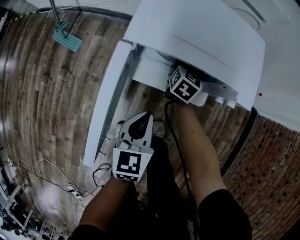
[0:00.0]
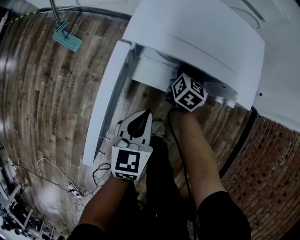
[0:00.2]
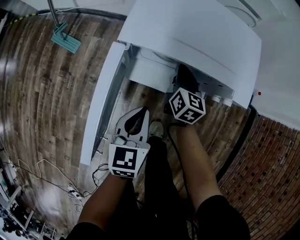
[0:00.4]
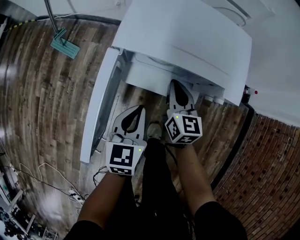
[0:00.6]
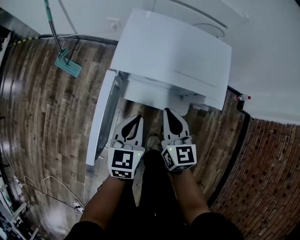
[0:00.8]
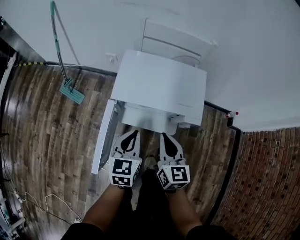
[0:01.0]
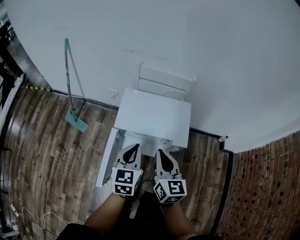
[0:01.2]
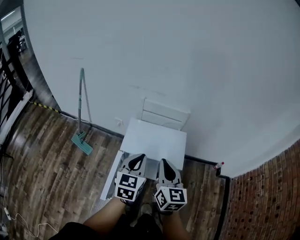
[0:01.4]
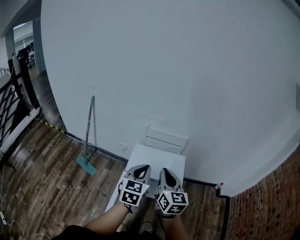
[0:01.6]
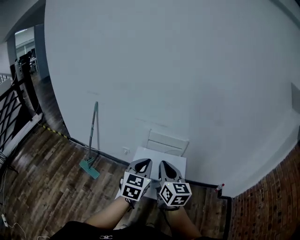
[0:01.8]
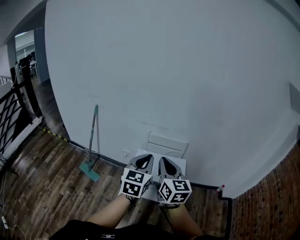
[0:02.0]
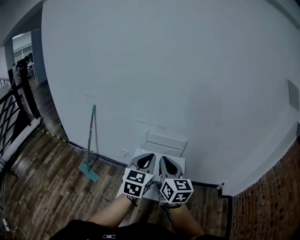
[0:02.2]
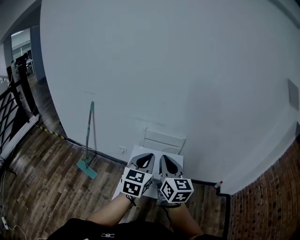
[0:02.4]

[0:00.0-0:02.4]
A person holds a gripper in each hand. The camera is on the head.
0:00.0 to 0:01.2: The left gripper heads upward, covering approximately 25 cm. The right gripper goes roughly 40 cm upward and backward, changes its angle by approximately 30 degrees, and closes its fingers.
0:01.2 to 0:02.4: The grippers both shift upward by about 25 cm.

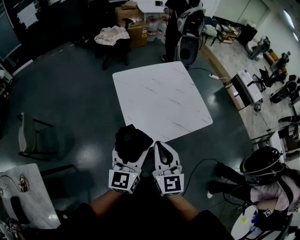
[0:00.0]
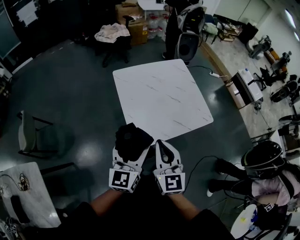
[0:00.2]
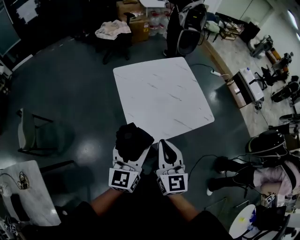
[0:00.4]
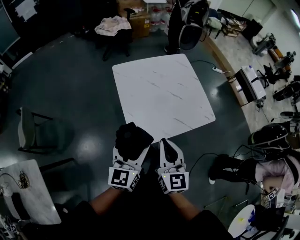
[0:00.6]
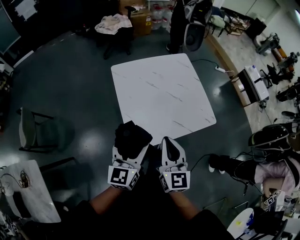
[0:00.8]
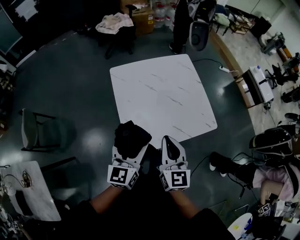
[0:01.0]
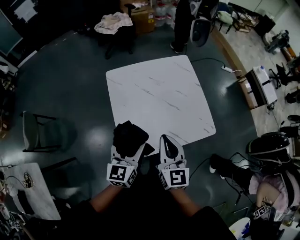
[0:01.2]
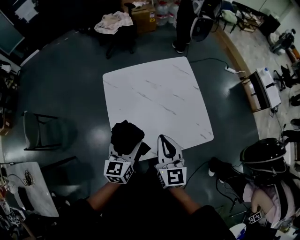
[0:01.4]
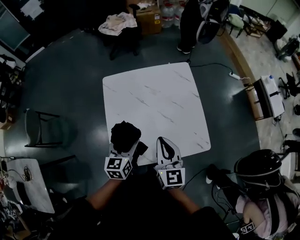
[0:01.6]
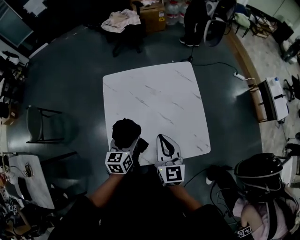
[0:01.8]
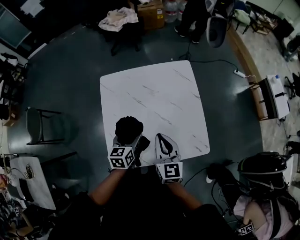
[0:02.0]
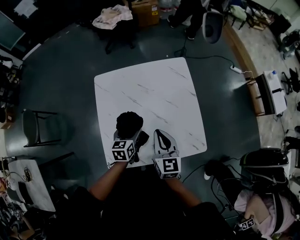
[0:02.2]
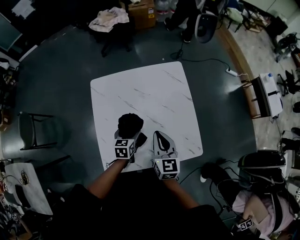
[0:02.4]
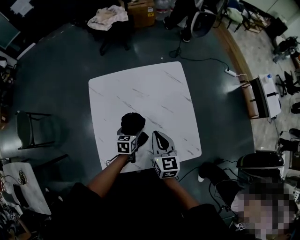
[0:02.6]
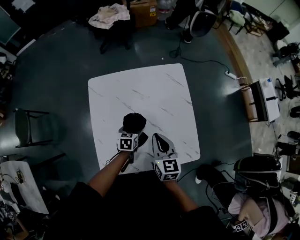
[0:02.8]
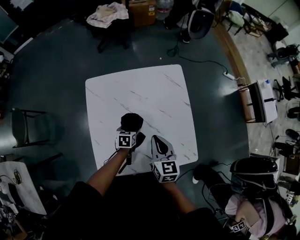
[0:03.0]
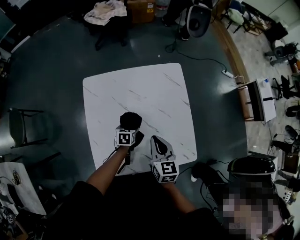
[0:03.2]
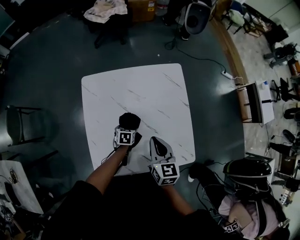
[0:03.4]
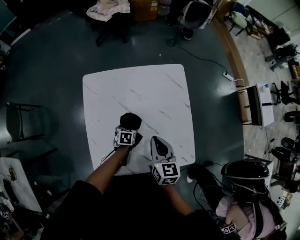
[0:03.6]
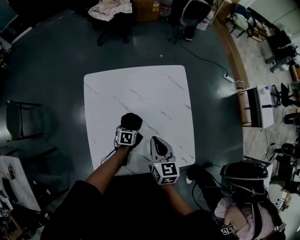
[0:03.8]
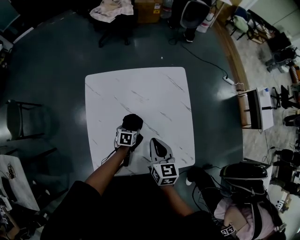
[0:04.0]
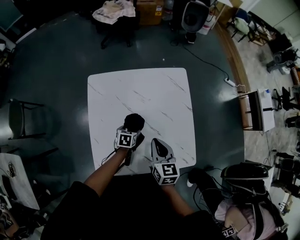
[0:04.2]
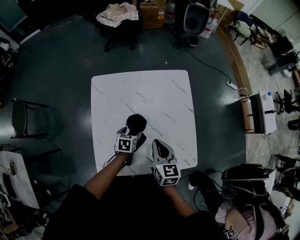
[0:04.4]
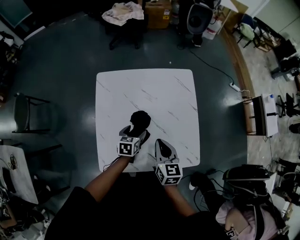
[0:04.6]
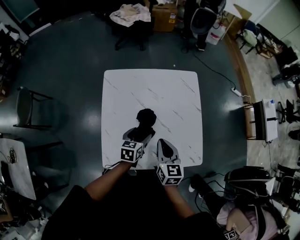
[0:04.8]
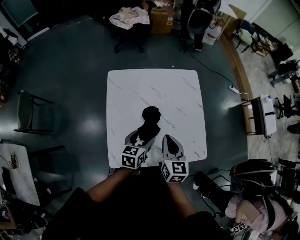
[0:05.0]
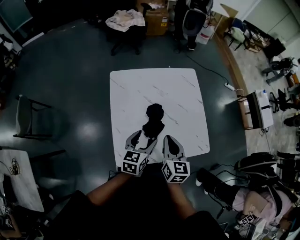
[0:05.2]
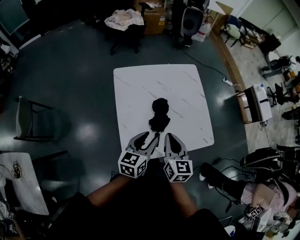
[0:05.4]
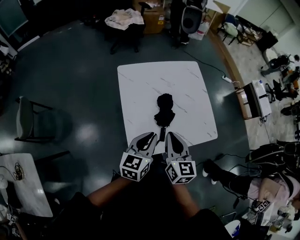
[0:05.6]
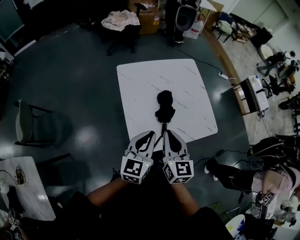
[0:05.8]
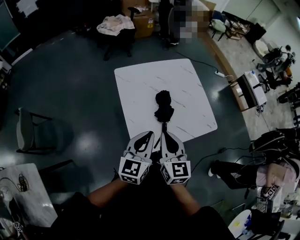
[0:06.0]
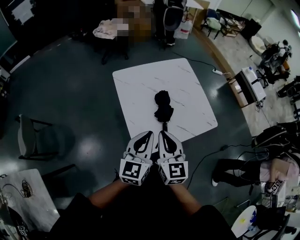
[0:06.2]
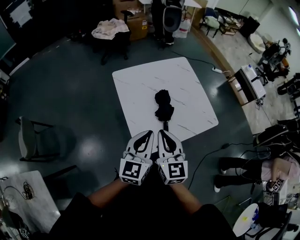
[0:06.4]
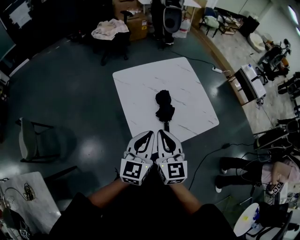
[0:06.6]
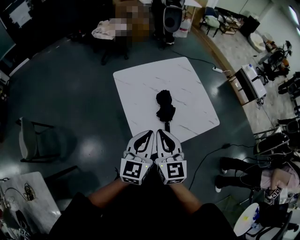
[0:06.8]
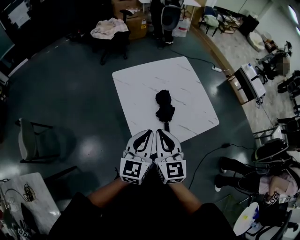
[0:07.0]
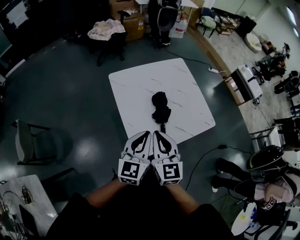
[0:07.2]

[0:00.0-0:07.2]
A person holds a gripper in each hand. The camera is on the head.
0:00.0 to 0:01.4: The left gripper is displaced forward, to the right and downward by some 25 cm, while the right gripper moves forward and to the right, about 25 cm.
0:01.4 to 0:02.8: The left gripper is displaced downward and forward by roughly 30 cm, and tips its fingers downward by approximately 30 degrees, while the right gripper travels forward, downward and to the right by roughly 20 cm.
0:02.8 to 0:04.4: The left gripper moves about 10 cm downward and comes back.
0:04.4 to 0:05.8: The left gripper shifts roughly 40 cm upward, backward and to the left, tips its fingers upward by some 40 degrees, and closes; the right gripper heads backward, to the left and upward, covering about 30 cm, and swivels some 20 degrees.
0:05.8 to 0:07.2: The right gripper travels to the left by roughly 5 cm.

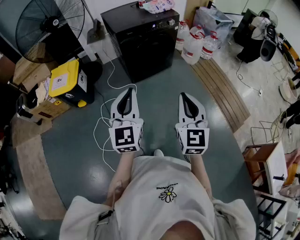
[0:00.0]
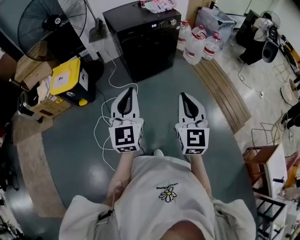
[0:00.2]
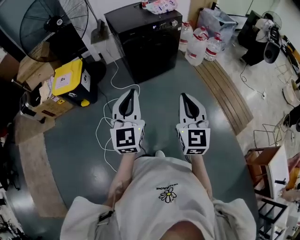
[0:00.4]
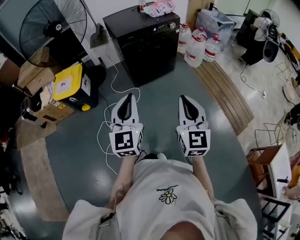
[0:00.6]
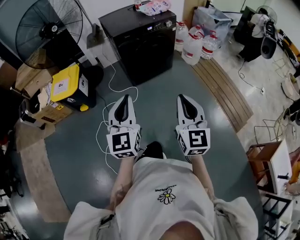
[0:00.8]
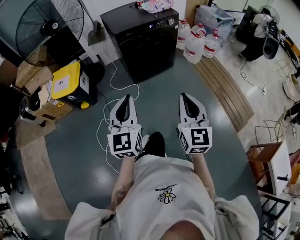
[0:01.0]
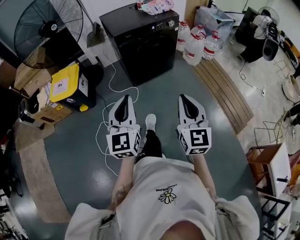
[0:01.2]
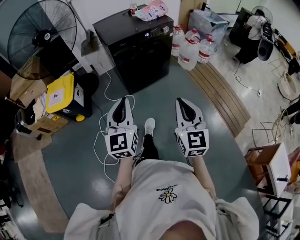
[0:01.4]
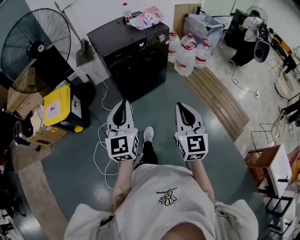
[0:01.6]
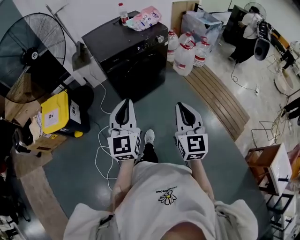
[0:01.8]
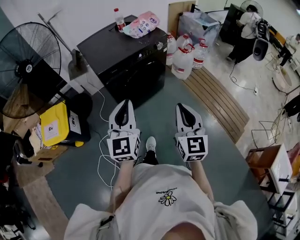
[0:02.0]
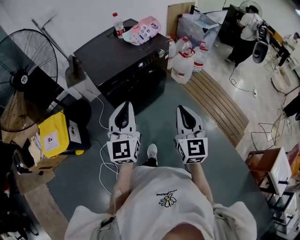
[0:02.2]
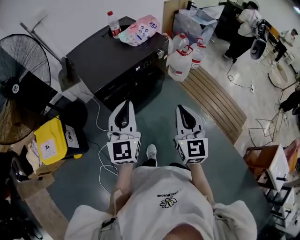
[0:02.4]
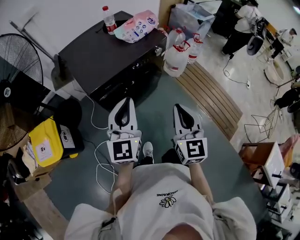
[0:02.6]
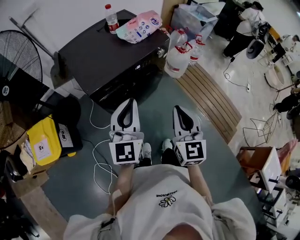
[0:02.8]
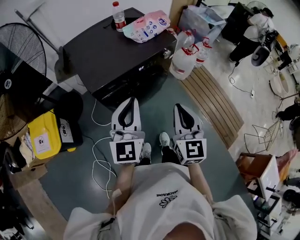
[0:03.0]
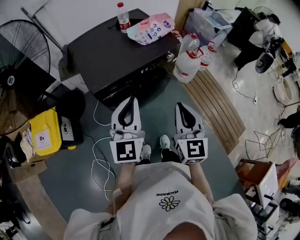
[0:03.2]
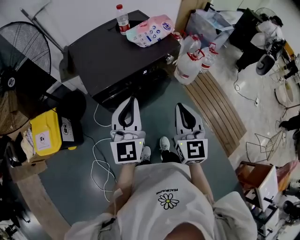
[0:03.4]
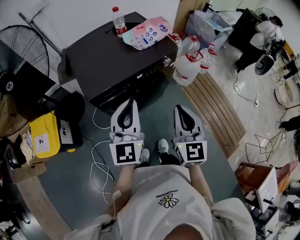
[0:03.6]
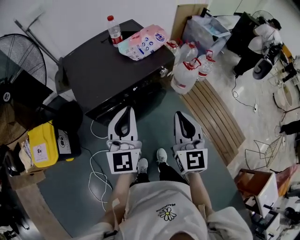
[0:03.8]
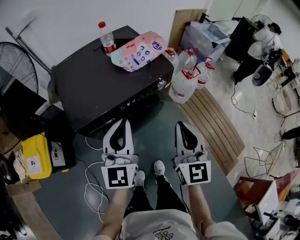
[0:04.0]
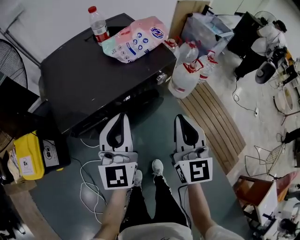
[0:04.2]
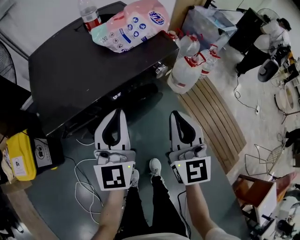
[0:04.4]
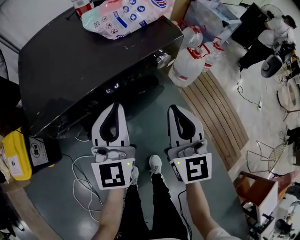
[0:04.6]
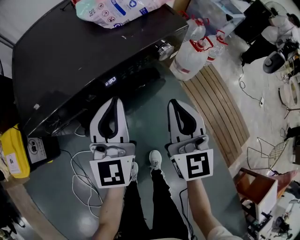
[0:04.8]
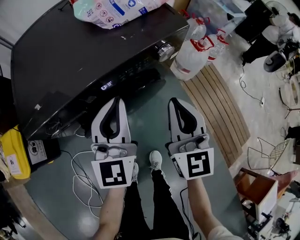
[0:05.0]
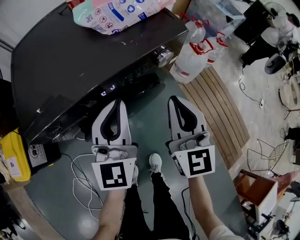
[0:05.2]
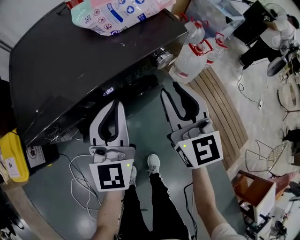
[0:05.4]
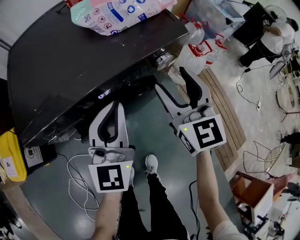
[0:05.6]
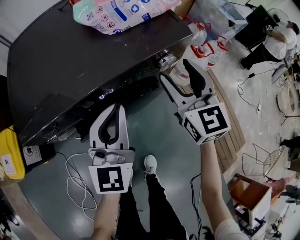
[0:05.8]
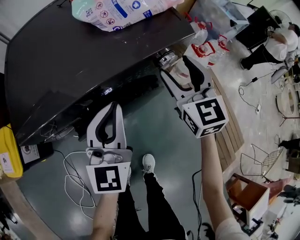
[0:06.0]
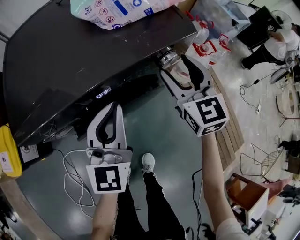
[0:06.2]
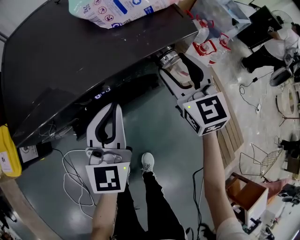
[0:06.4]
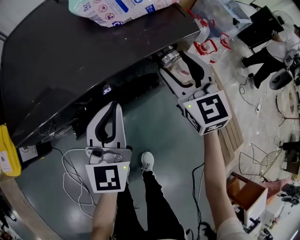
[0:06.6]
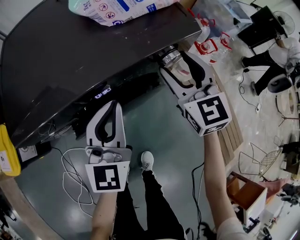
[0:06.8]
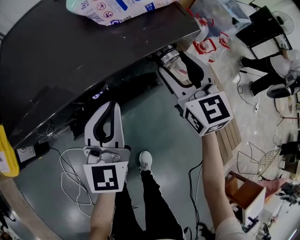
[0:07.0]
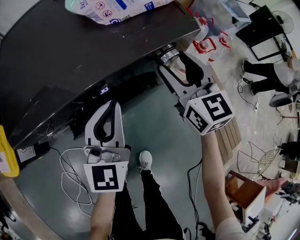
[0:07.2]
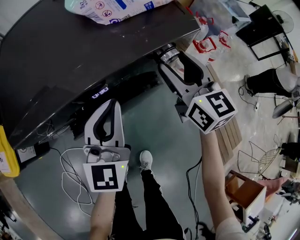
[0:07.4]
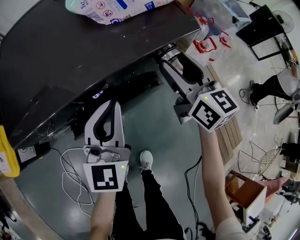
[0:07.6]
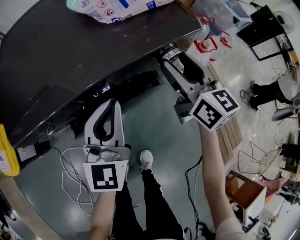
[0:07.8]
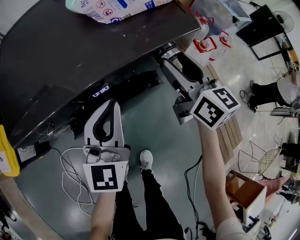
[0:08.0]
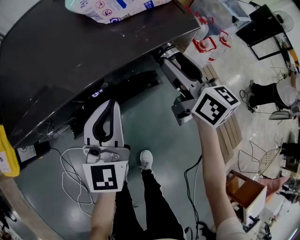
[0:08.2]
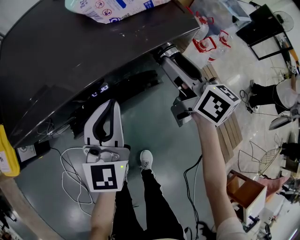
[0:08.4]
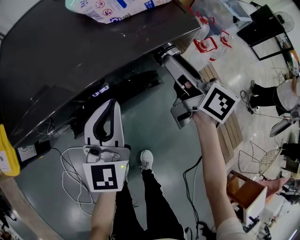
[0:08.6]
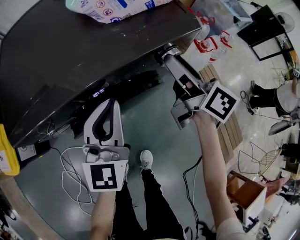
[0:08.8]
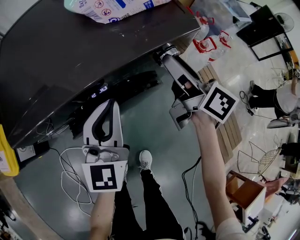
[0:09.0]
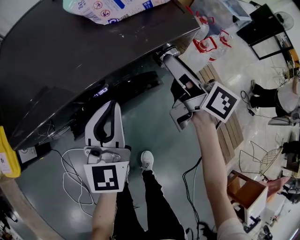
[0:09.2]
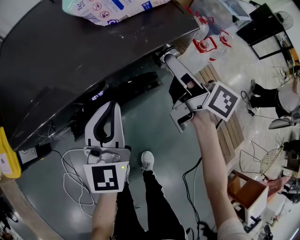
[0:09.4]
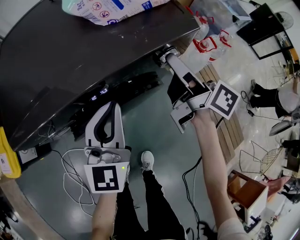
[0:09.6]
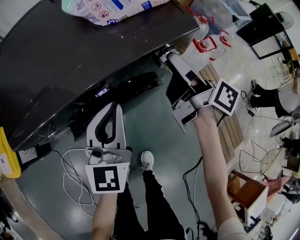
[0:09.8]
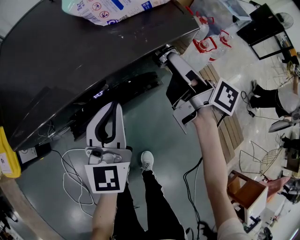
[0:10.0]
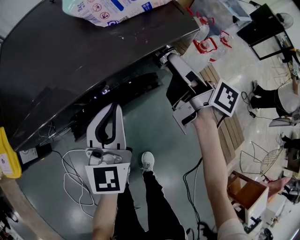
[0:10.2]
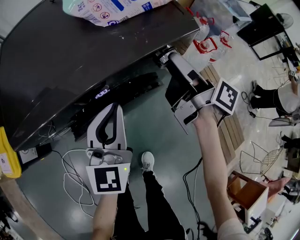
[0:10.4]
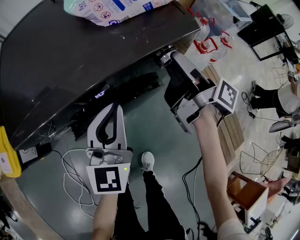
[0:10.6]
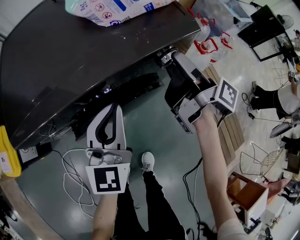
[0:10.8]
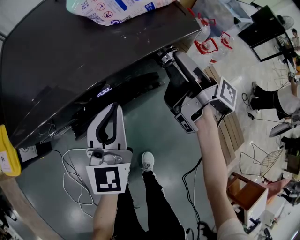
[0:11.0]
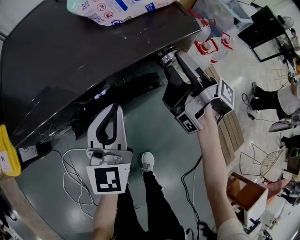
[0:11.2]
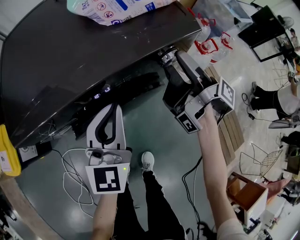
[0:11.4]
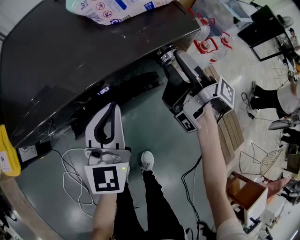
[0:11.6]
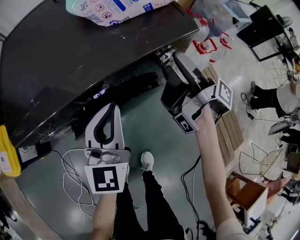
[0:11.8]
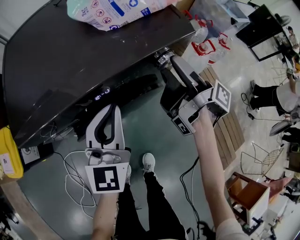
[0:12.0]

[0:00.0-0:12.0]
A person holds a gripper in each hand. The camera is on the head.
0:00.0 to 0:01.6: The two grippers go roughly 15 cm forward.
0:01.6 to 0:03.0: The two grippers go about 35 cm forward.
0:03.0 to 0:04.4: Both grippers travel together forward and downward, some 20 cm.
0:04.4 to 0:06.0: The left gripper goes some 10 cm downward, while the right gripper moves forward and downward, some 20 cm, and opens its fingers.
0:06.0 to 0:07.6: The right gripper swivels roughly 30 degrees.
0:07.6 to 0:09.0: The right gripper changes its angle by roughly 30 degrees.
0:09.0 to 0:10.4: The right gripper swivels about 30 degrees.
0:10.4 to 0:12.0: The right gripper swivels approximately 20 degrees.

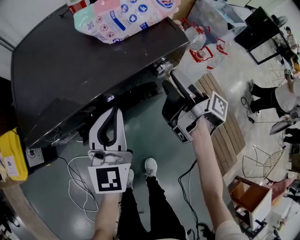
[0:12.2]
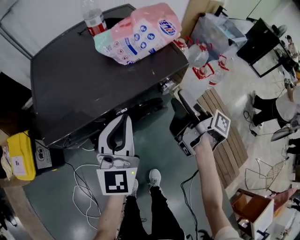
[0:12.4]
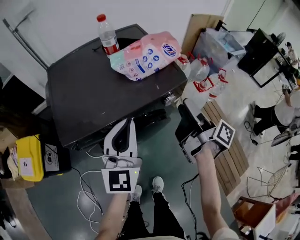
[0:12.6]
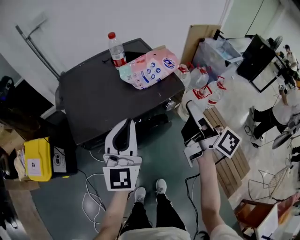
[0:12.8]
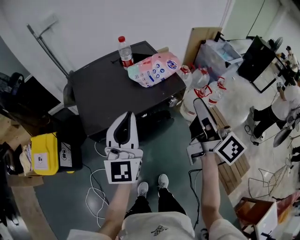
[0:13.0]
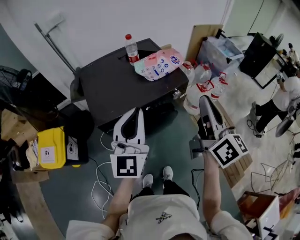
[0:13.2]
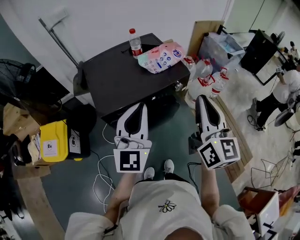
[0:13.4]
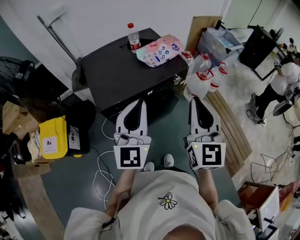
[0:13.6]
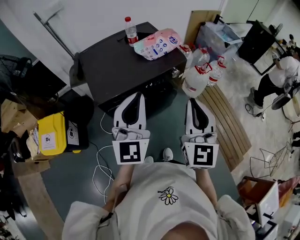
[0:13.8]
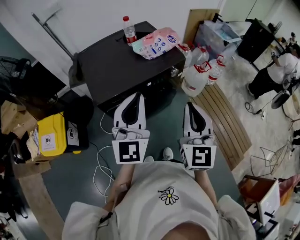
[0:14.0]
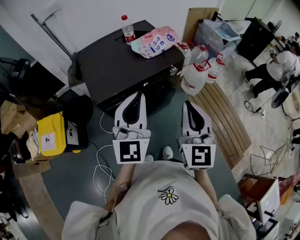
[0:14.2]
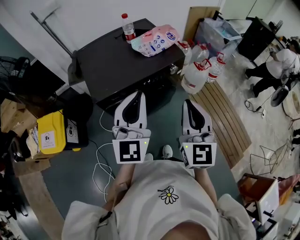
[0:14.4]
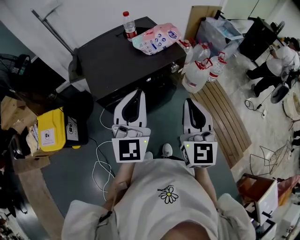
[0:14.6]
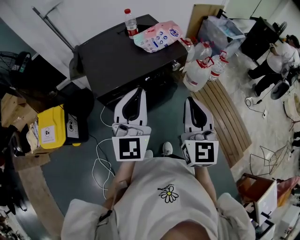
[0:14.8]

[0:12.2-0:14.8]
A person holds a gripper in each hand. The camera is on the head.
0:12.2 to 0:13.4: The two grippers go about 40 cm upward and backward. The right gripper rotates around the line of its fingers by about 90 degrees, counterclockwise from behind, and closes up.
0:13.4 to 0:14.8: The right gripper goes some 10 cm downward and backward.
